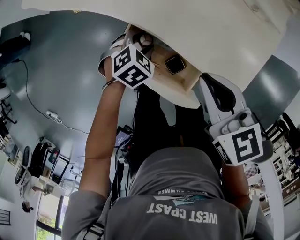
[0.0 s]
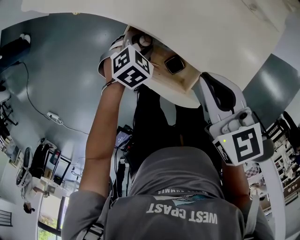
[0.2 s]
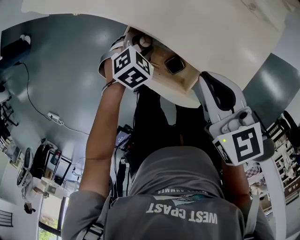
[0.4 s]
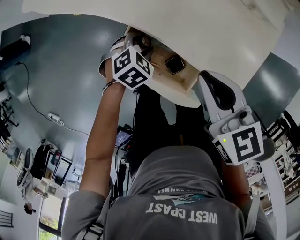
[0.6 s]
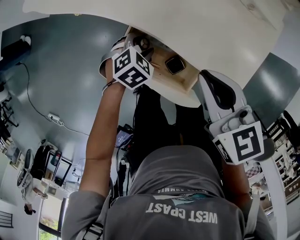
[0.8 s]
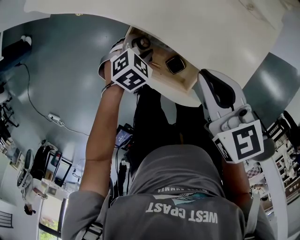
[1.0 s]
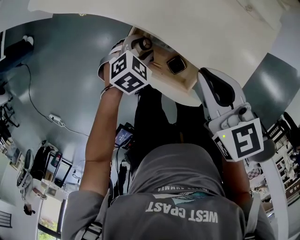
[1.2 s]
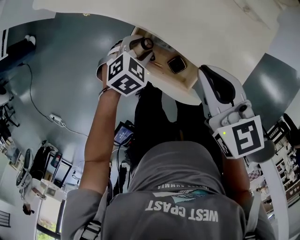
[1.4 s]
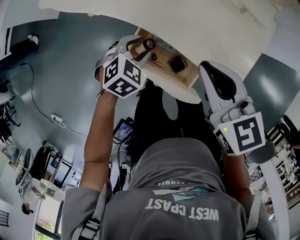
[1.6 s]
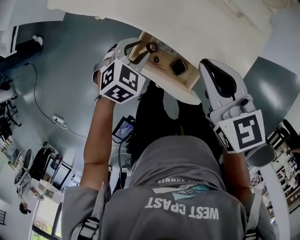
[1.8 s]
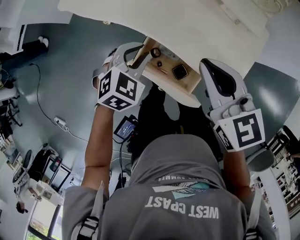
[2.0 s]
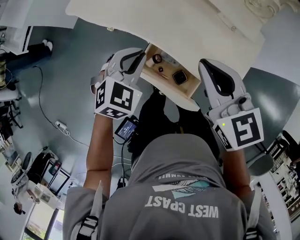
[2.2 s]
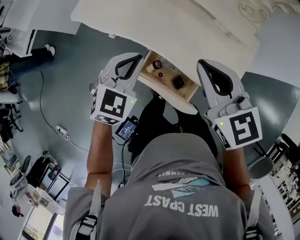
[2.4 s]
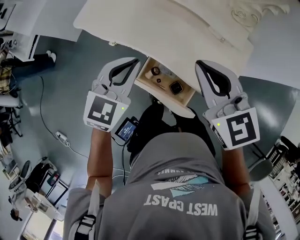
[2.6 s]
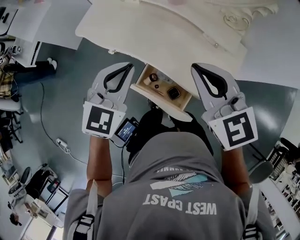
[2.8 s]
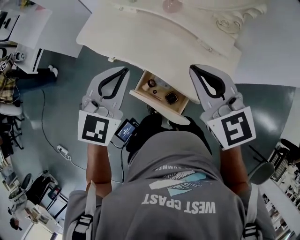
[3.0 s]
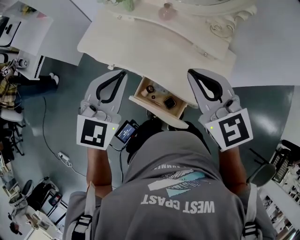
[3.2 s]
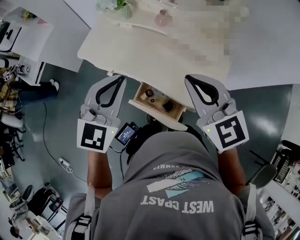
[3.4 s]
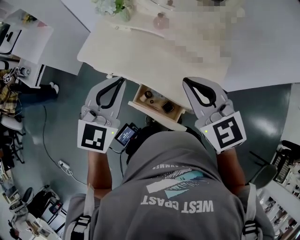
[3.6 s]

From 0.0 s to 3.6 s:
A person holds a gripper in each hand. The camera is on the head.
From 0.0 s to 1.8 s: Both grippers move upward, roughly 15 cm.
From 1.8 s to 3.6 s: The left gripper shifts roughly 35 cm upward, tilts its fingers approximately 40 degrees upward, and closes its fingers. Meanwhile the right gripper heads upward, covering approximately 20 cm, and swivels some 20 degrees.

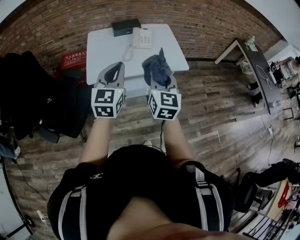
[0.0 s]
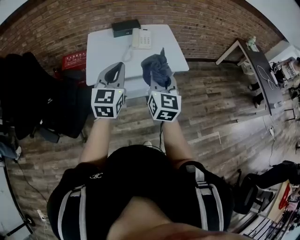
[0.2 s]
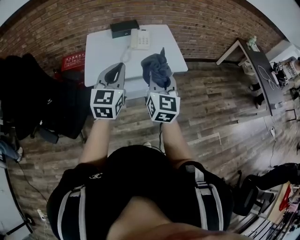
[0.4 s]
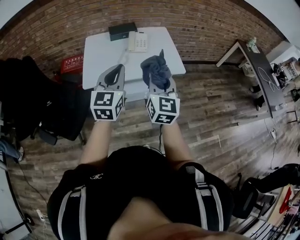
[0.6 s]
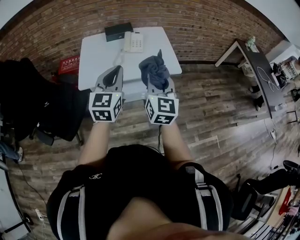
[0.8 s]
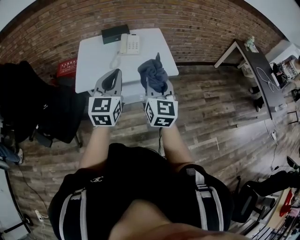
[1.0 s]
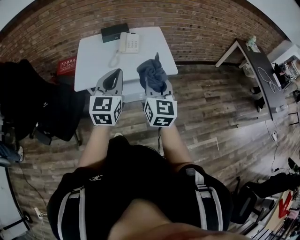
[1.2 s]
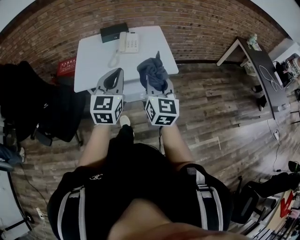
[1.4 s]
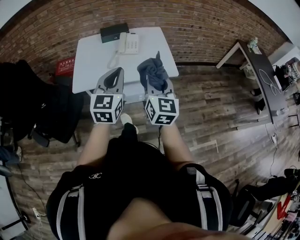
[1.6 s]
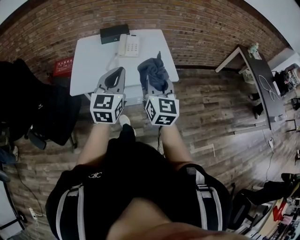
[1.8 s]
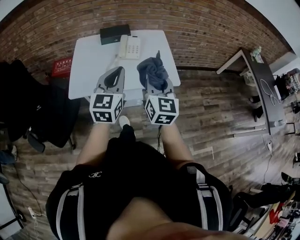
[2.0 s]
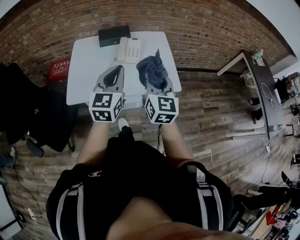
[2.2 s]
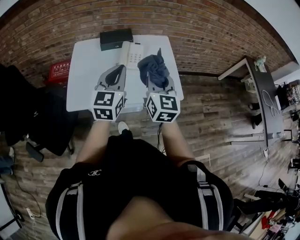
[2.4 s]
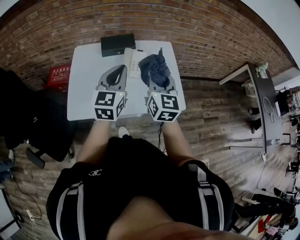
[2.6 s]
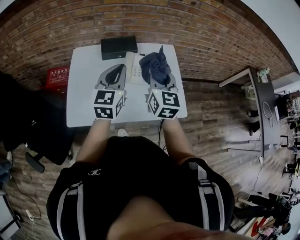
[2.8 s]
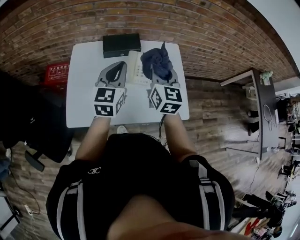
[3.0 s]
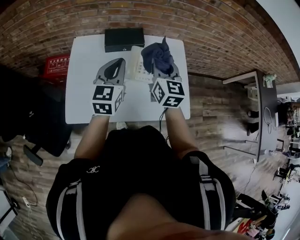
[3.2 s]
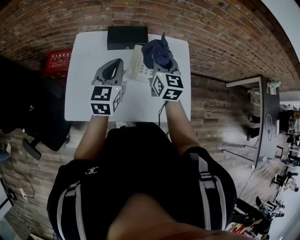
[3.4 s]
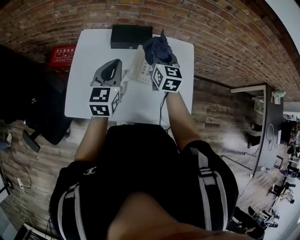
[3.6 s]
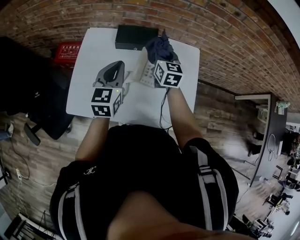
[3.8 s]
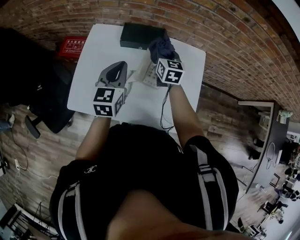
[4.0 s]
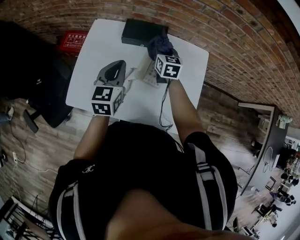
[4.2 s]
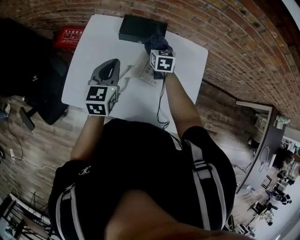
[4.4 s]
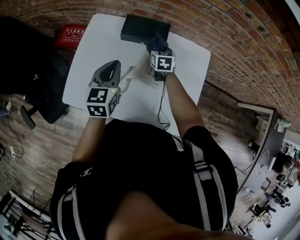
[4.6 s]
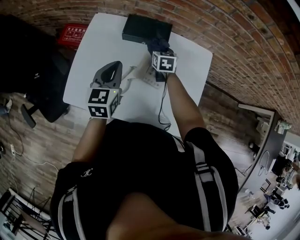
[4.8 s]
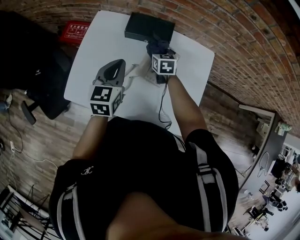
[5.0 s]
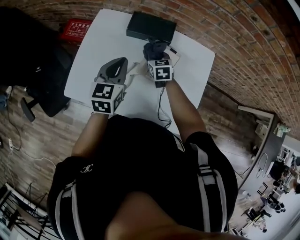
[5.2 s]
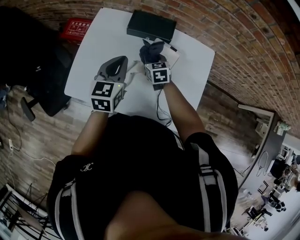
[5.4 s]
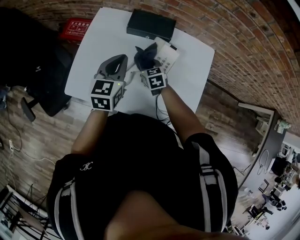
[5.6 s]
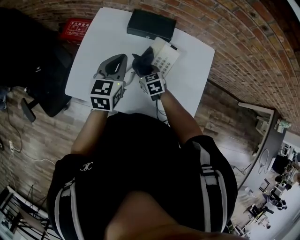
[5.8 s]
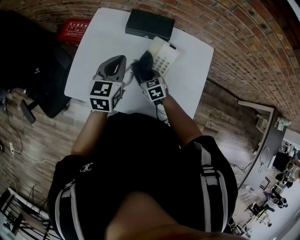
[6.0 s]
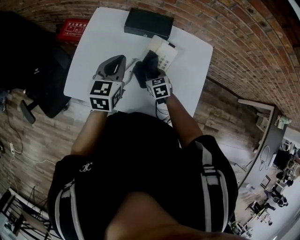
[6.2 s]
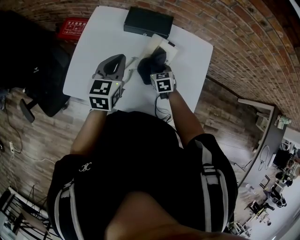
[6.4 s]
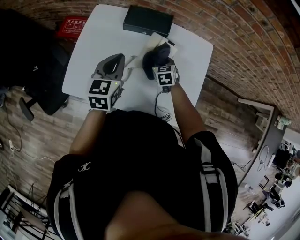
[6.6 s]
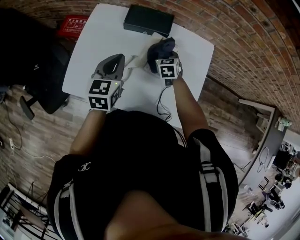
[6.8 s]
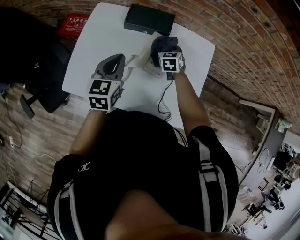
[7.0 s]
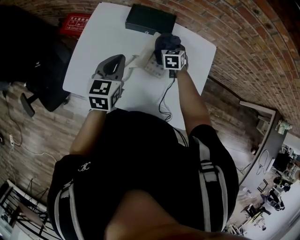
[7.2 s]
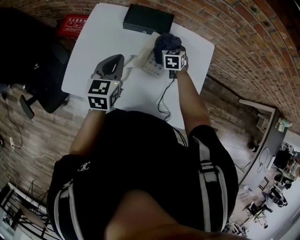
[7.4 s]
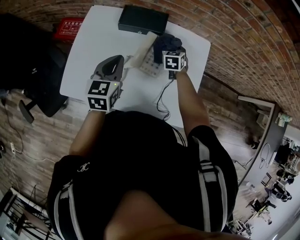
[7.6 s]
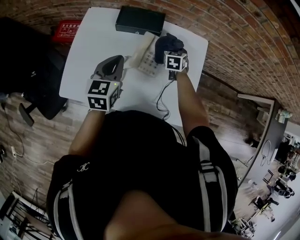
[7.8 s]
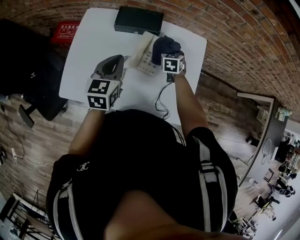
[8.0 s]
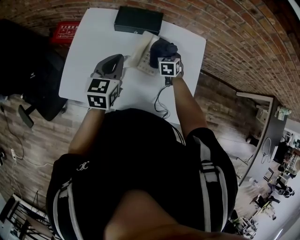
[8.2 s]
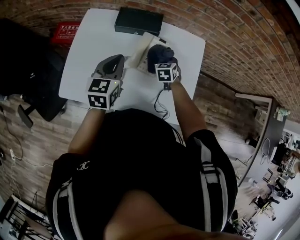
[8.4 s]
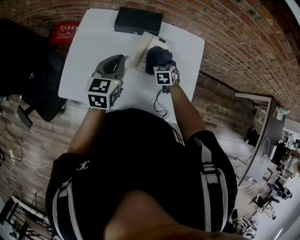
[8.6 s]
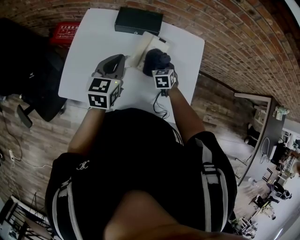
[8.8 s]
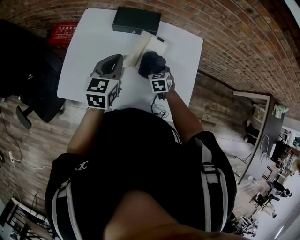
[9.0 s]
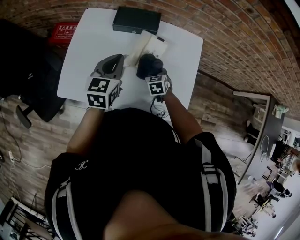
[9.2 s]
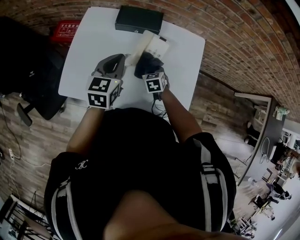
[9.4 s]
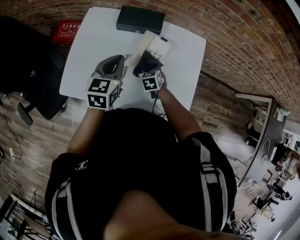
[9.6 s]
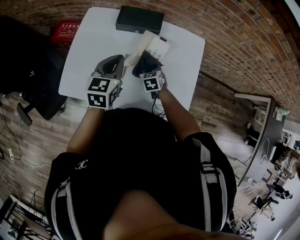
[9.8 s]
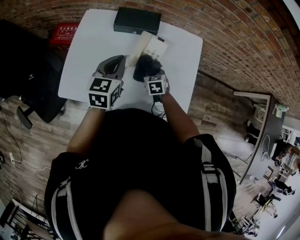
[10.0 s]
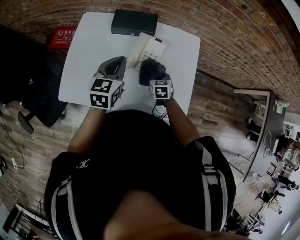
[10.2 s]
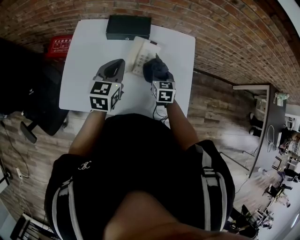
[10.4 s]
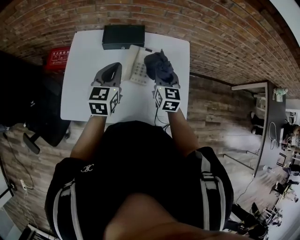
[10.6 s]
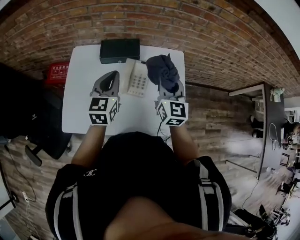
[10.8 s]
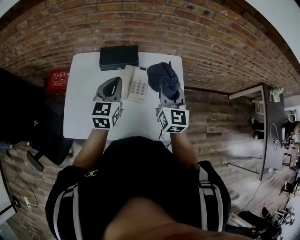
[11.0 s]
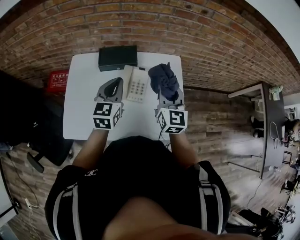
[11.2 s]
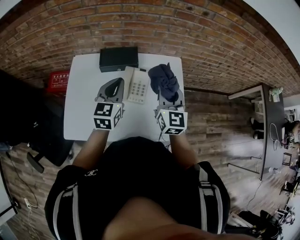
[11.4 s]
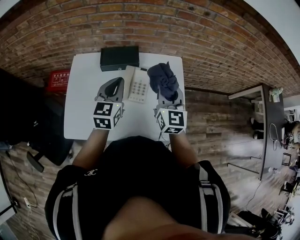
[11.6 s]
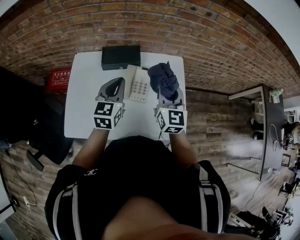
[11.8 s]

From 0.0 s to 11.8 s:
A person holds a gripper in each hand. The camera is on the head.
From 0.0 s to 1.4 s: Both grippers move to the right, approximately 15 cm.
From 1.4 s to 3.0 s: The two grippers travel together, forward, roughly 40 cm.
From 3.0 s to 4.4 s: The left gripper goes roughly 10 cm downward and forward, and rotates approximately 20 degrees. Meanwhile the right gripper travels downward and forward by approximately 30 cm, and turns by about 30 degrees.
From 4.4 s to 6.0 s: The right gripper is displaced backward, downward and to the left by approximately 20 cm, and turns by about 30 degrees.
From 6.0 s to 7.4 s: The right gripper is displaced forward and to the right by about 20 cm, and rotates some 30 degrees.
From 7.4 s to 8.8 s: The right gripper is displaced backward by some 10 cm.
From 8.8 s to 10.4 s: The right gripper goes approximately 5 cm upward.
From 10.4 s to 11.8 s: The right gripper travels upward by about 25 cm, and tips its fingers upward by some 30 degrees. Meanwhile the left gripper goes about 5 cm upward.

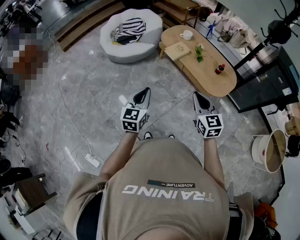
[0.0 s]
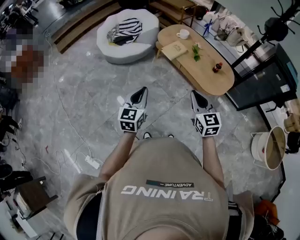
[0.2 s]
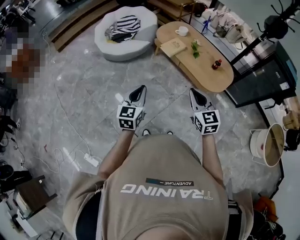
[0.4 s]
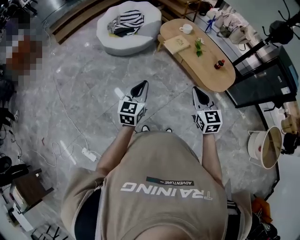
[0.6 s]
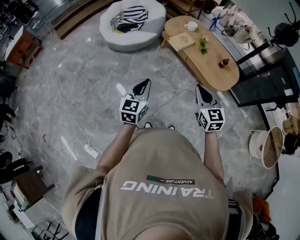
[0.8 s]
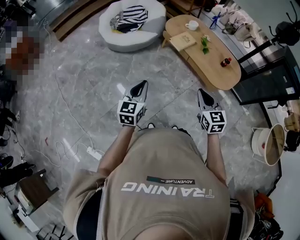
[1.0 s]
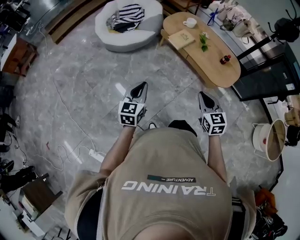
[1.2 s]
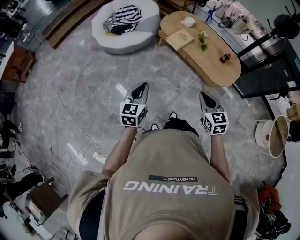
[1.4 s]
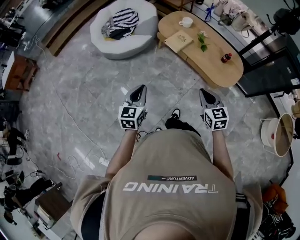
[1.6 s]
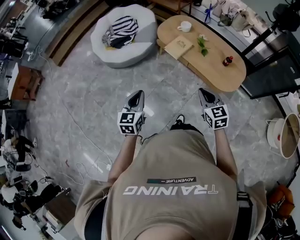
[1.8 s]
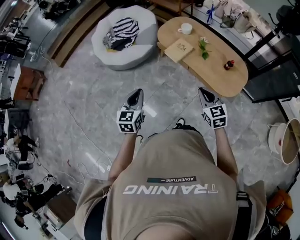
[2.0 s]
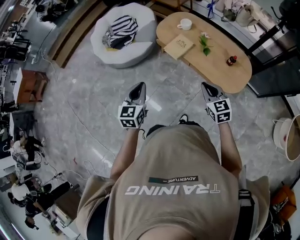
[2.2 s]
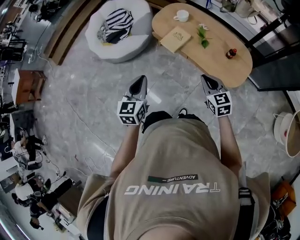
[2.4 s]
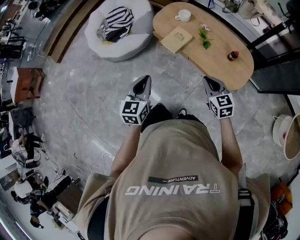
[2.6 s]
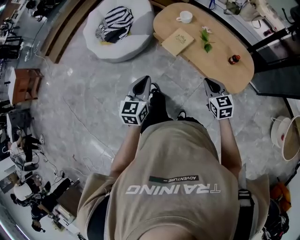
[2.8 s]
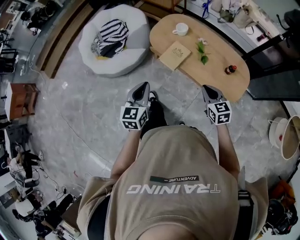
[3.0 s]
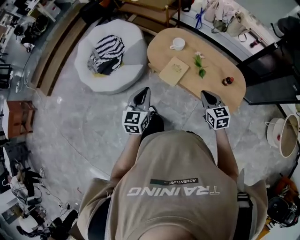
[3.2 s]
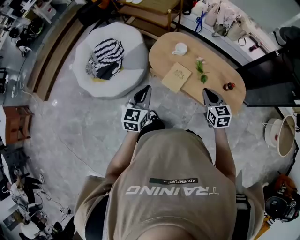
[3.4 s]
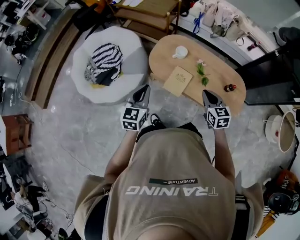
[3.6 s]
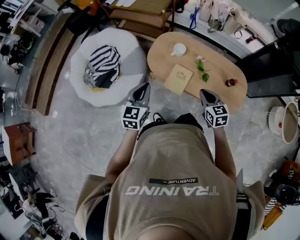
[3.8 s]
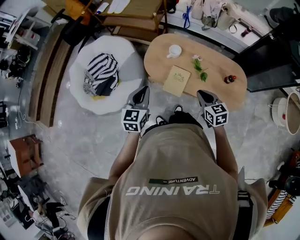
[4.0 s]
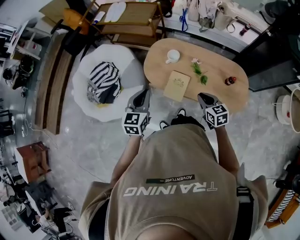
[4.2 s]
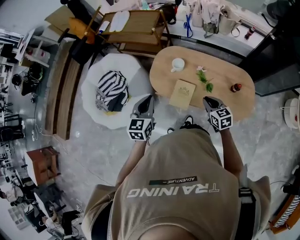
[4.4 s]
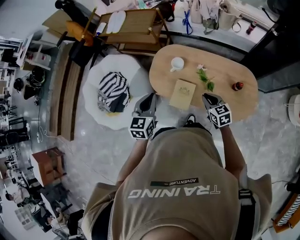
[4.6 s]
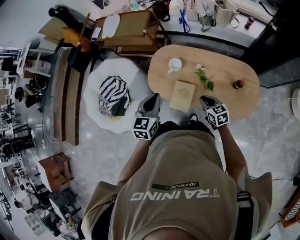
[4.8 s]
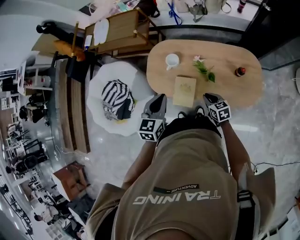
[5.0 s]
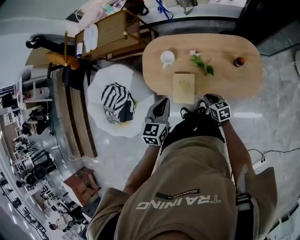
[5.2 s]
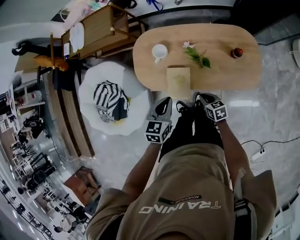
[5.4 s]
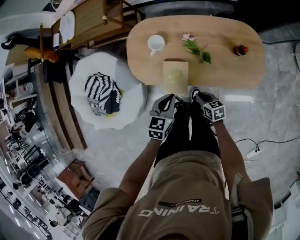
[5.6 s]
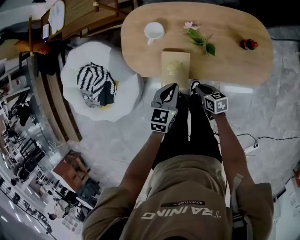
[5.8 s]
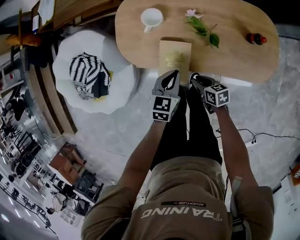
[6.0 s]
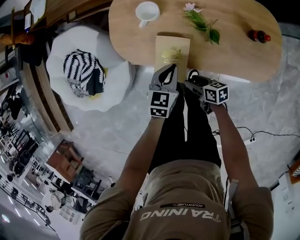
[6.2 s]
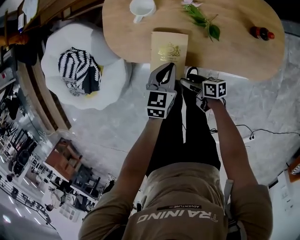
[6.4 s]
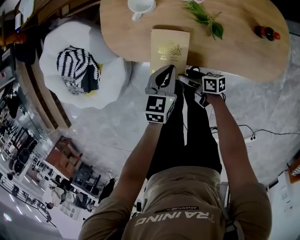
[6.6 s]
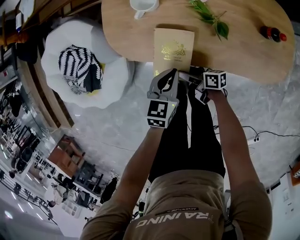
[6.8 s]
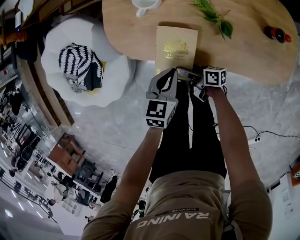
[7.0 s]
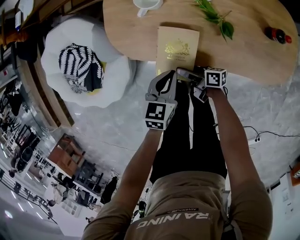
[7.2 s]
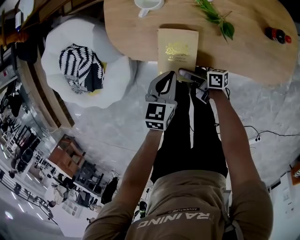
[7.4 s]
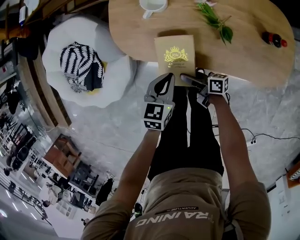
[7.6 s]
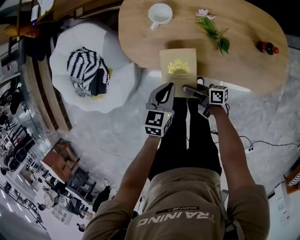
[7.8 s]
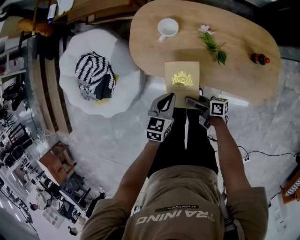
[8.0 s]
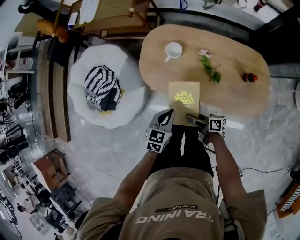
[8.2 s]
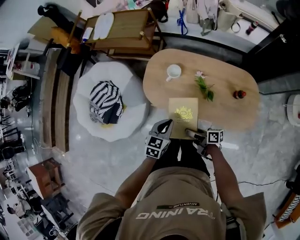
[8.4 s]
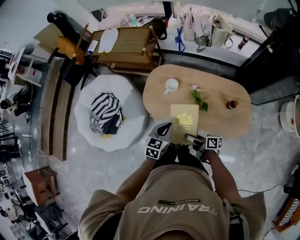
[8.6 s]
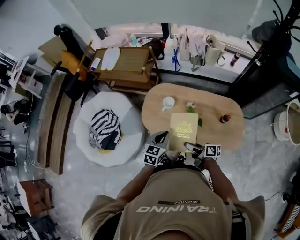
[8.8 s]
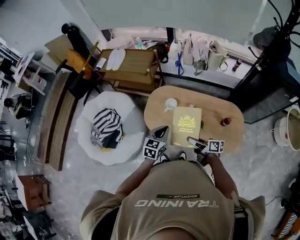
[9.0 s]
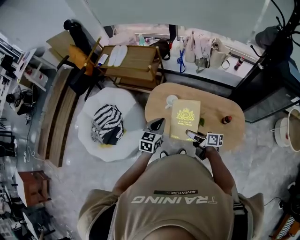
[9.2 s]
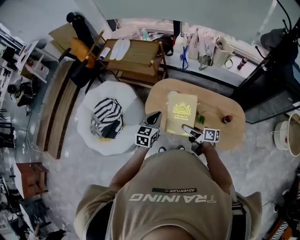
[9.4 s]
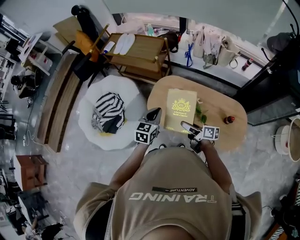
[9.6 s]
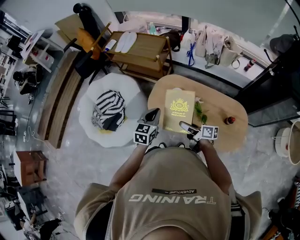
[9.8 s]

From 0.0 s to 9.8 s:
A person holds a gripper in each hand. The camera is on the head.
From 0.0 s to 1.4 s: The left gripper goes approximately 10 cm to the left, forward and downward. The right gripper goes roughly 5 cm downward.
From 1.4 s to 2.8 s: The left gripper is displaced forward and to the right by some 25 cm; the right gripper travels forward by roughly 25 cm.
From 2.8 s to 4.2 s: The right gripper heads forward and to the left, covering some 20 cm, and changes its angle by about 20 degrees, while the left gripper is displaced forward by some 30 cm, and swivels approximately 20 degrees.
From 4.2 s to 5.6 s: The left gripper moves downward and to the right, some 25 cm, and rotates roughly 30 degrees. Meanwhile the right gripper goes about 25 cm downward, and rotates some 30 degrees.
From 5.6 s to 7.0 s: The right gripper moves downward and to the left, some 20 cm, points its fingers roughly 30 degrees further upward, and opens. The left gripper moves downward, approximately 15 cm.
From 7.0 s to 8.4 s: Both grippers move upward, approximately 25 cm.
From 8.4 s to 9.8 s: The two grippers go about 15 cm upward and forward.
